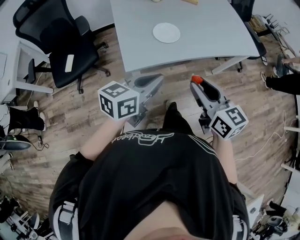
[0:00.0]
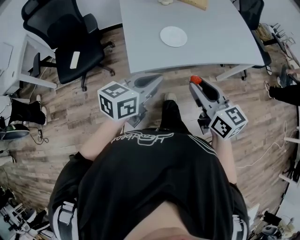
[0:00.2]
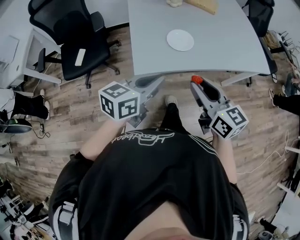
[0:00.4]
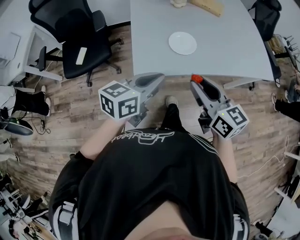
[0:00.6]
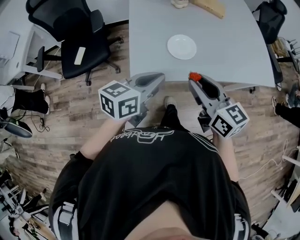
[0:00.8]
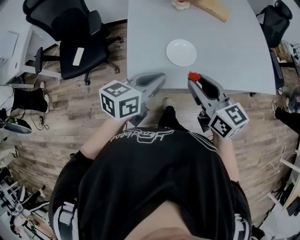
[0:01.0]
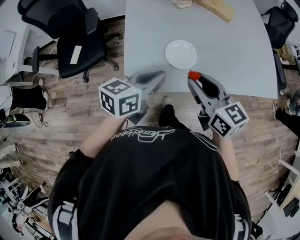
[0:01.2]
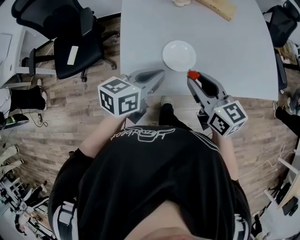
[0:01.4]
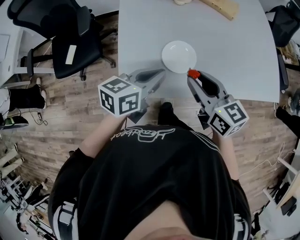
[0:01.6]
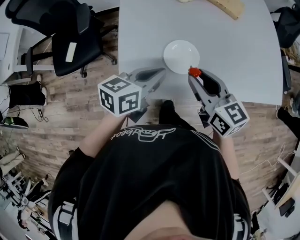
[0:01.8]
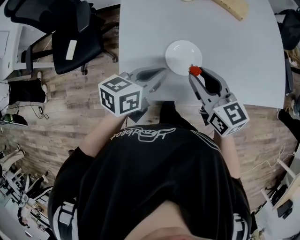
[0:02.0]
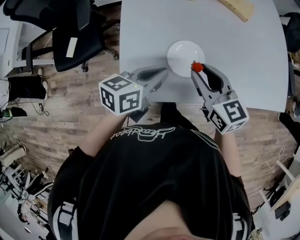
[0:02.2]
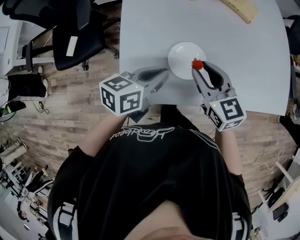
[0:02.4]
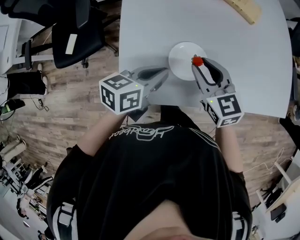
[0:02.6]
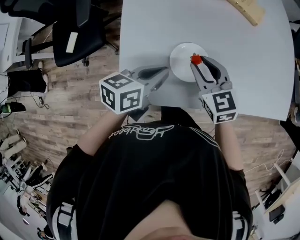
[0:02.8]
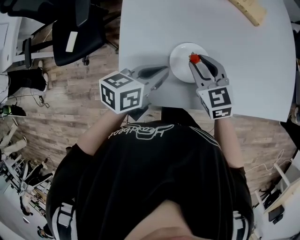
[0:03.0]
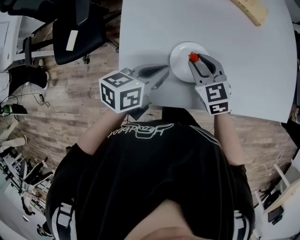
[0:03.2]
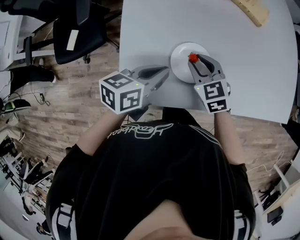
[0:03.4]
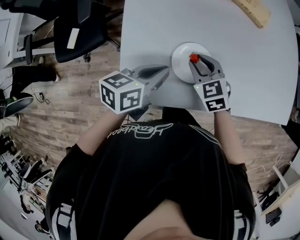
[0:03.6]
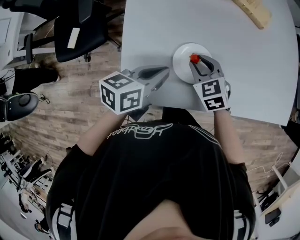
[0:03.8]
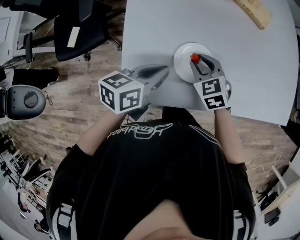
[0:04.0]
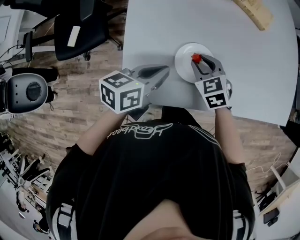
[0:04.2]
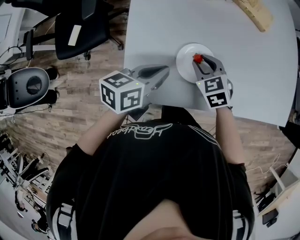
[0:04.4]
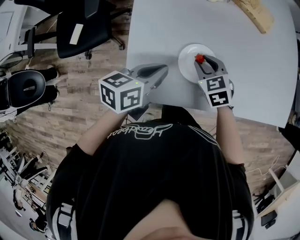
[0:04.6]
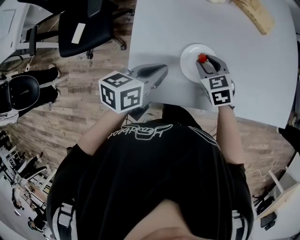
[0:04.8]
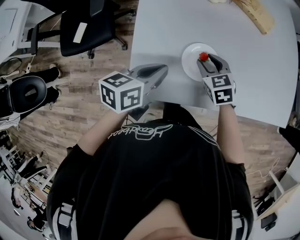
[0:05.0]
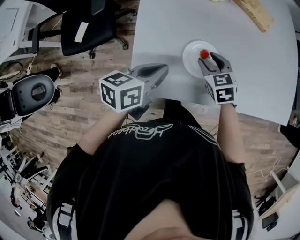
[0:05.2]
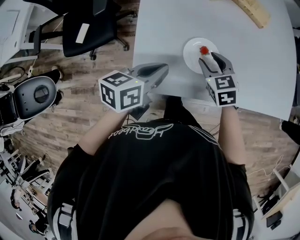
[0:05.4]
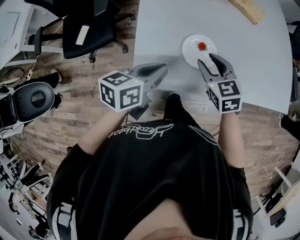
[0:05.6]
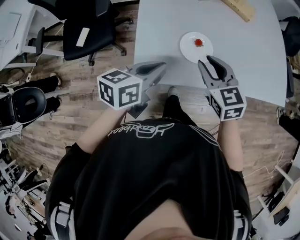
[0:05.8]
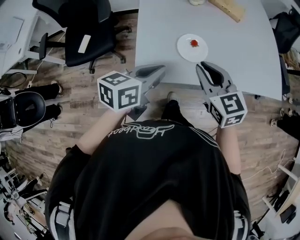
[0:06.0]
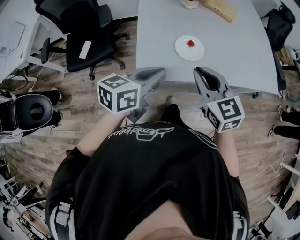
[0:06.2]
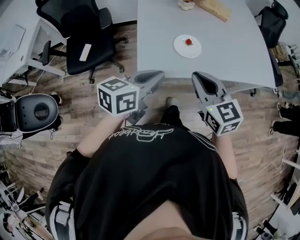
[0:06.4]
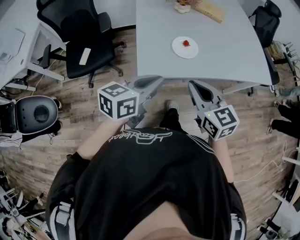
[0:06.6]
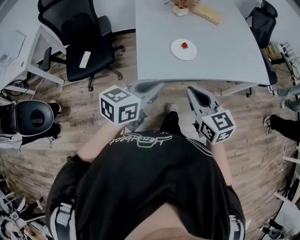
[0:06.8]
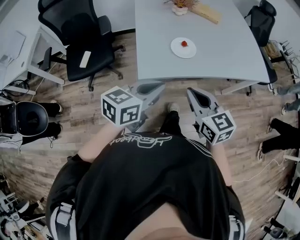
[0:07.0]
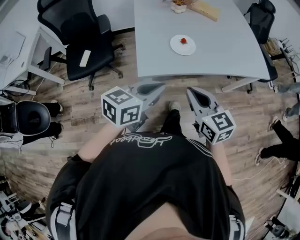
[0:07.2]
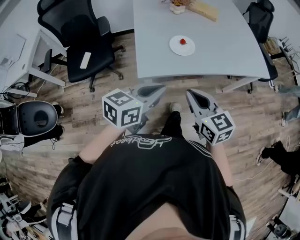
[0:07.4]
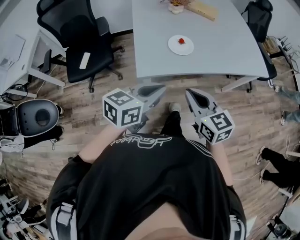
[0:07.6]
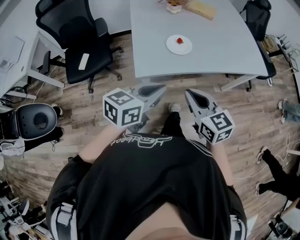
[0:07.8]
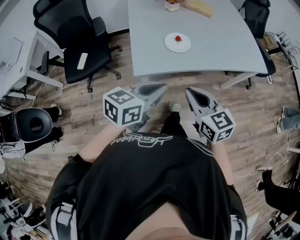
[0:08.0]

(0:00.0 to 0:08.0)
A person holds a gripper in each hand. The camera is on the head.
0:00.0 - 0:01.6: Both grippers move forward, approximately 25 cm.
0:01.6 - 0:03.2: The left gripper goes about 10 cm downward and forward. Meanwhile the right gripper travels downward and forward by approximately 20 cm, and swivels roughly 30 degrees.
0:03.2 - 0:04.8: The grippers stay close to where they were, moving slightly.
0:04.8 - 0:06.4: The grippers both shift backward and upward by about 30 cm. The right gripper tilts its fingers approximately 30 degrees upward, and closes up.
0:06.4 - 0:08.0: Both grippers move backward, about 10 cm.

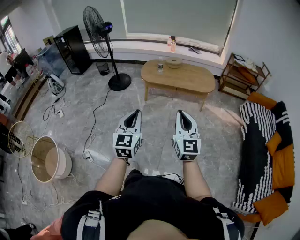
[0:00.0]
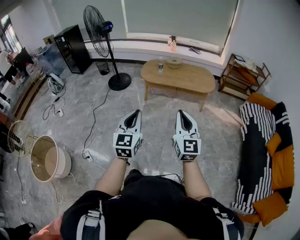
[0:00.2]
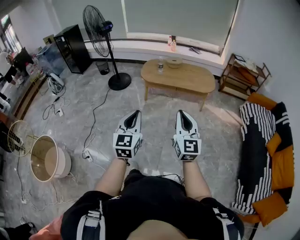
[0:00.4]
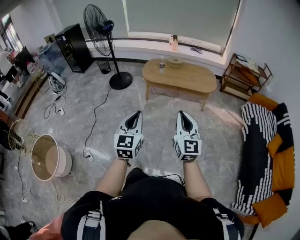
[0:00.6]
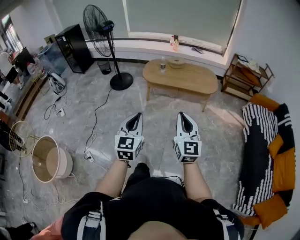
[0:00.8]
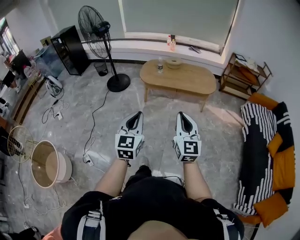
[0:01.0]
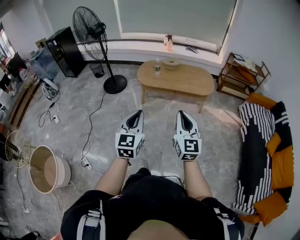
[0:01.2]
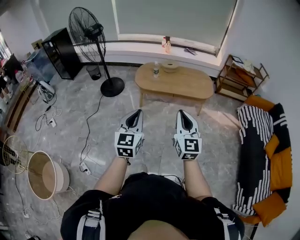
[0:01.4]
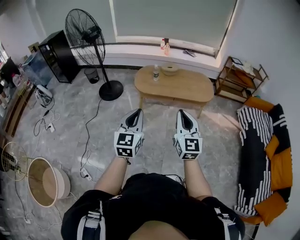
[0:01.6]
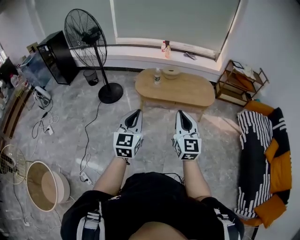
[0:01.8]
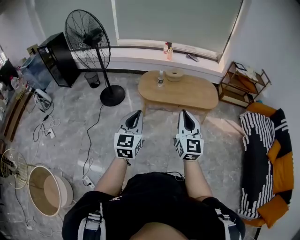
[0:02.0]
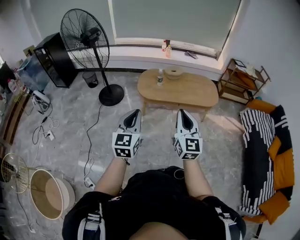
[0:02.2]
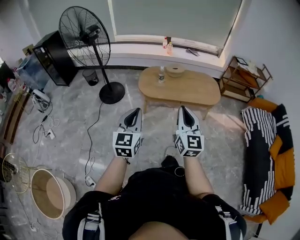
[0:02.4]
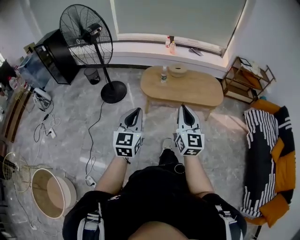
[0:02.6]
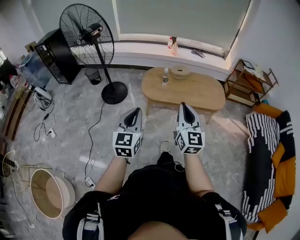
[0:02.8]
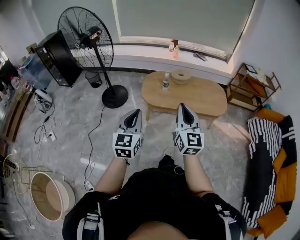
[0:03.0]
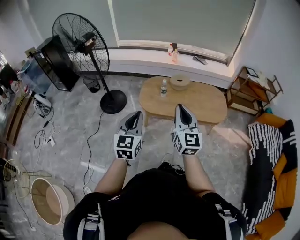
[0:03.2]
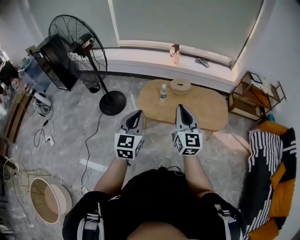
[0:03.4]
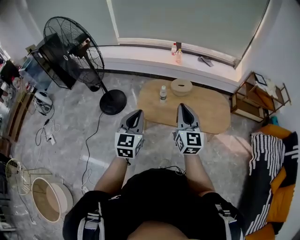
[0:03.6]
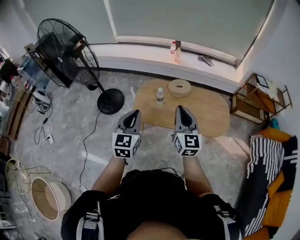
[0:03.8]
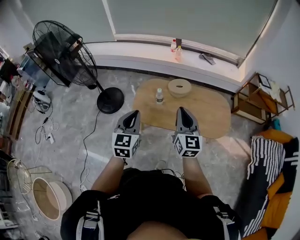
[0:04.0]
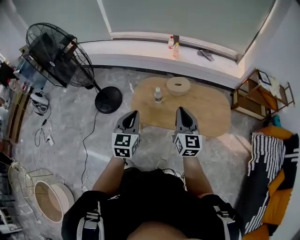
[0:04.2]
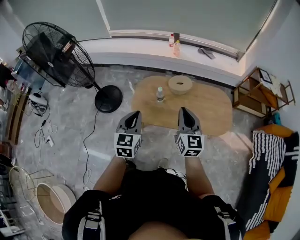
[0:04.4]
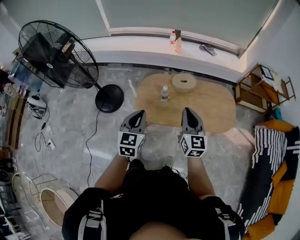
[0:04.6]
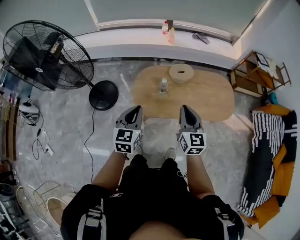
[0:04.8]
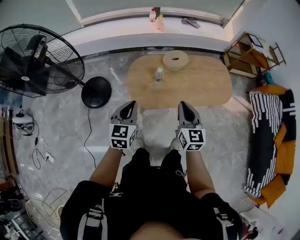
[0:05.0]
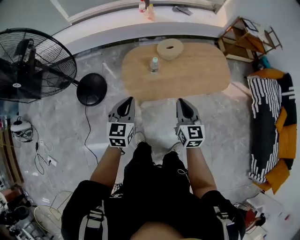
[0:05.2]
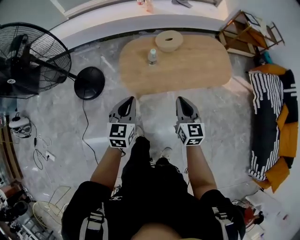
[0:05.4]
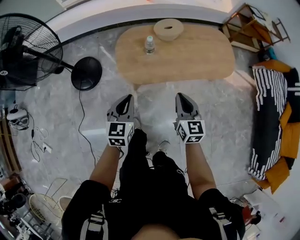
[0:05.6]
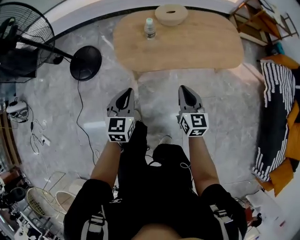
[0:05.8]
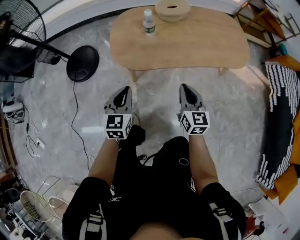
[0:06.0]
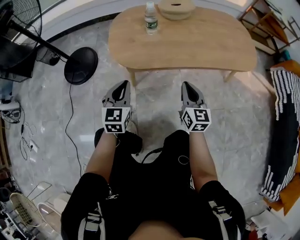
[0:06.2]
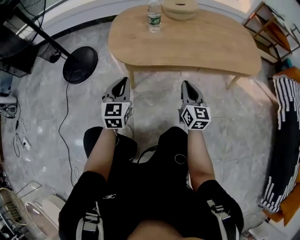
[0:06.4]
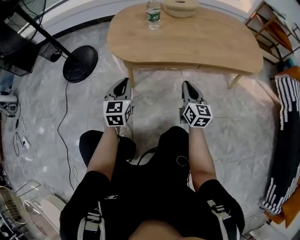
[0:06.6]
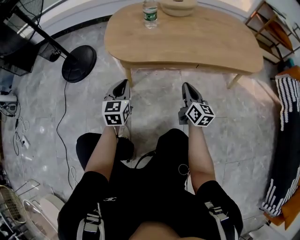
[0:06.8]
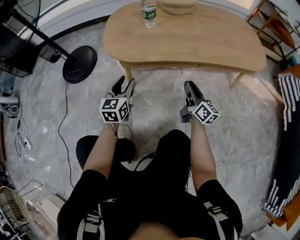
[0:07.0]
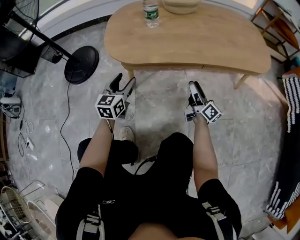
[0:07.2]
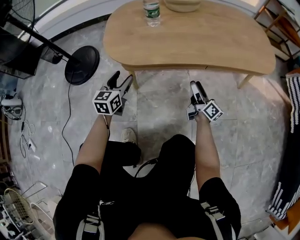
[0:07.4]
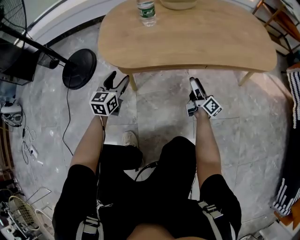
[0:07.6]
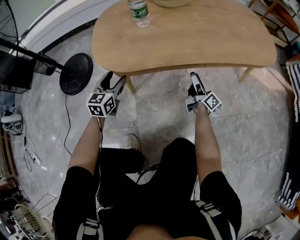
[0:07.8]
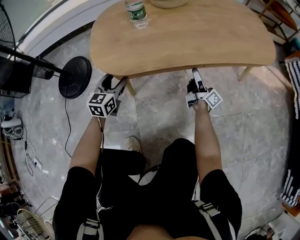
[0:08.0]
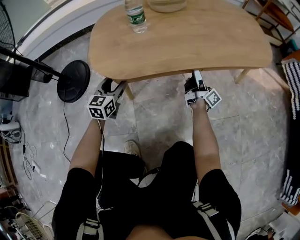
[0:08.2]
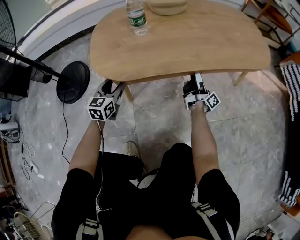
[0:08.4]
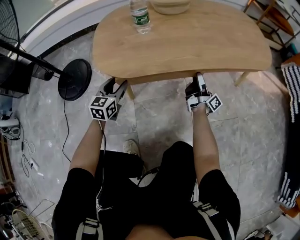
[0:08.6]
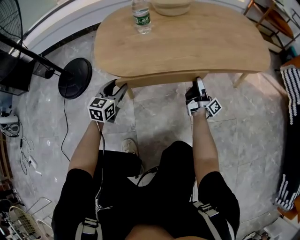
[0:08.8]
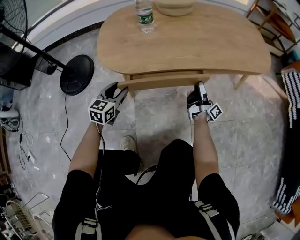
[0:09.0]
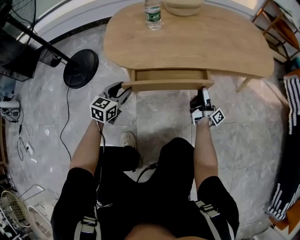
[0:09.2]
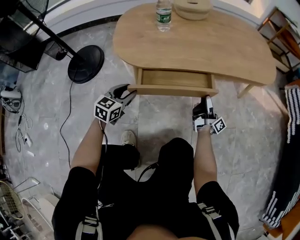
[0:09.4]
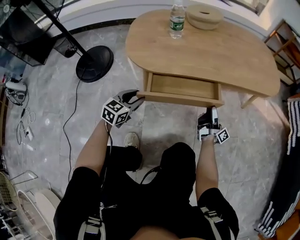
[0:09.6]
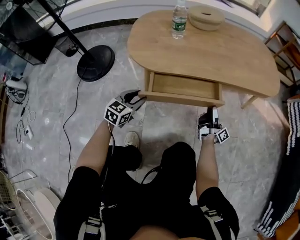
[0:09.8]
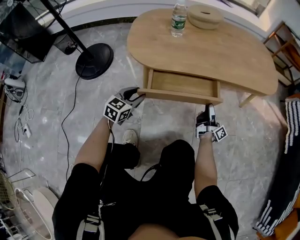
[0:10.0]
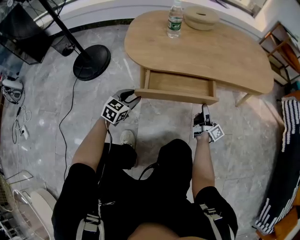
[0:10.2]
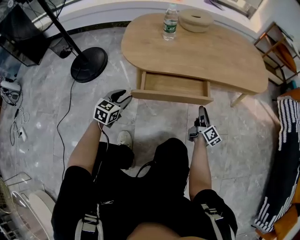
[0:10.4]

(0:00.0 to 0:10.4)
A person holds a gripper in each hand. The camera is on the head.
0:00.0 - 0:01.4: Both grippers travel together forward, roughly 20 cm.
0:01.4 - 0:03.0: The grippers both shift forward and to the left by some 35 cm.
0:03.0 - 0:04.4: Both grippers are carried forward, about 40 cm.
0:04.4 - 0:06.0: Both grippers move downward, approximately 50 cm.
0:06.0 - 0:07.4: The two grippers go about 30 cm downward. The left gripper opens up; the right gripper rotates around the line of its fingers by roughly 50 degrees, clockwise from behind, and opens its fingers.
0:07.4 - 0:09.0: The right gripper reaches approximately 10 cm forward, then returns, and swivels some 30 degrees.
0:09.0 - 0:10.4: Both grippers travel together backward, some 10 cm. The right gripper rotates approximately 40 degrees.

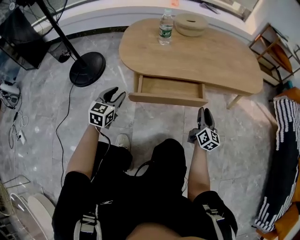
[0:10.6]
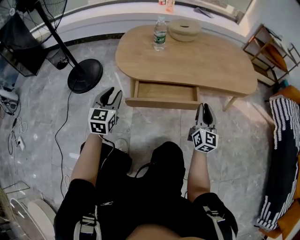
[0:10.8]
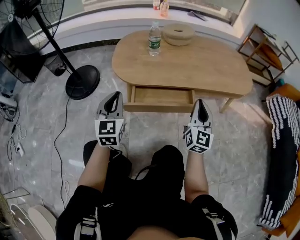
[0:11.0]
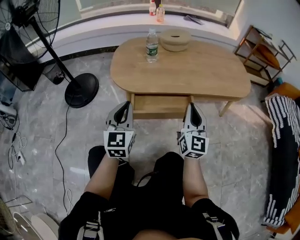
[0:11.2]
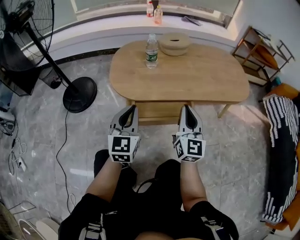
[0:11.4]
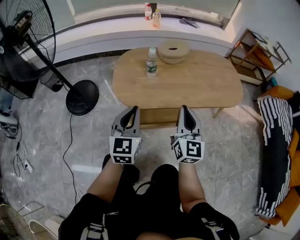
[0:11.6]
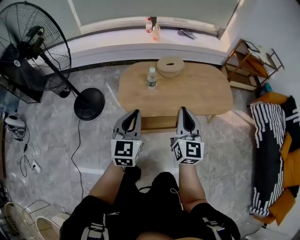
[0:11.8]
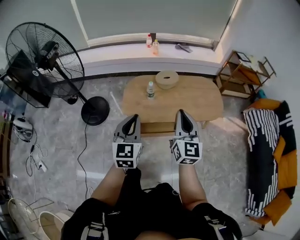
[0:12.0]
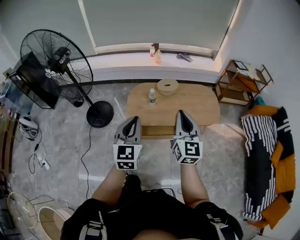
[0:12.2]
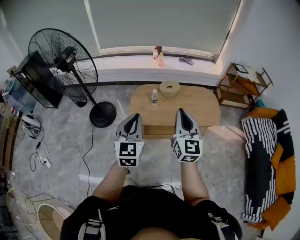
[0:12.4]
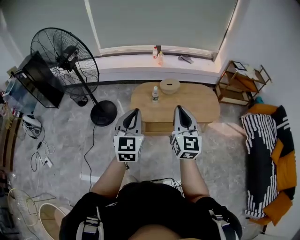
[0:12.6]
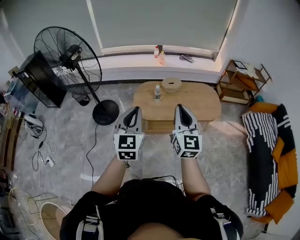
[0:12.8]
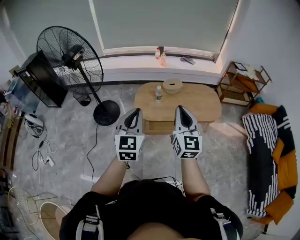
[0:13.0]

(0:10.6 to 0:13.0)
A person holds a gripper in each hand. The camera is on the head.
0:10.6 - 0:11.8: The two grippers go roughly 50 cm upward. The right gripper changes its angle by approximately 20 degrees; the left gripper closes.
0:11.8 - 0:13.0: Both grippers travel together upward and backward, roughly 40 cm.

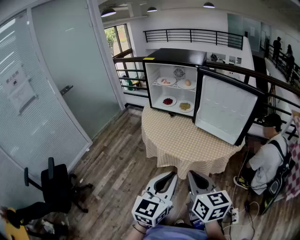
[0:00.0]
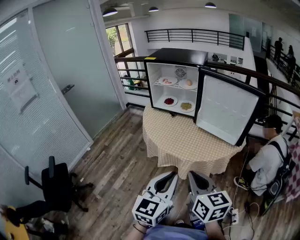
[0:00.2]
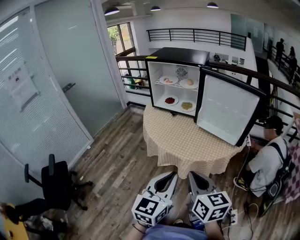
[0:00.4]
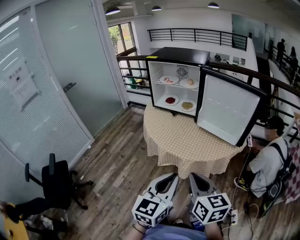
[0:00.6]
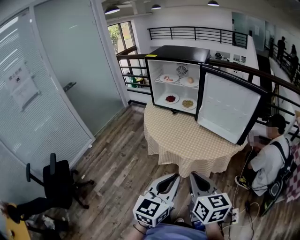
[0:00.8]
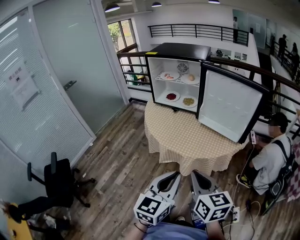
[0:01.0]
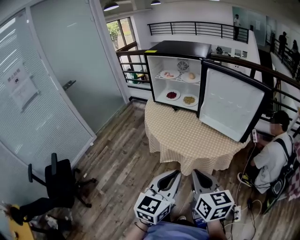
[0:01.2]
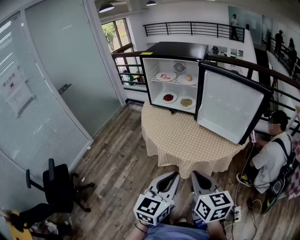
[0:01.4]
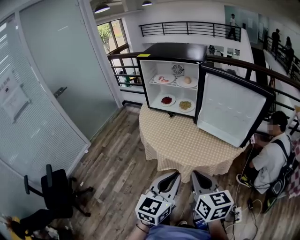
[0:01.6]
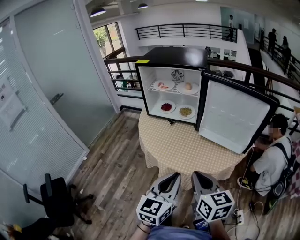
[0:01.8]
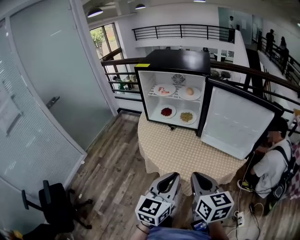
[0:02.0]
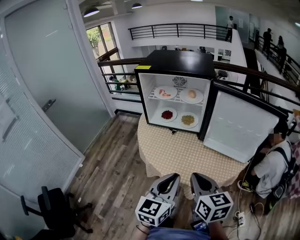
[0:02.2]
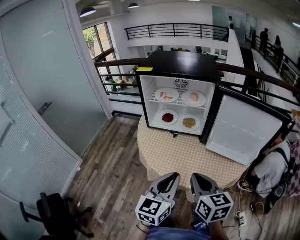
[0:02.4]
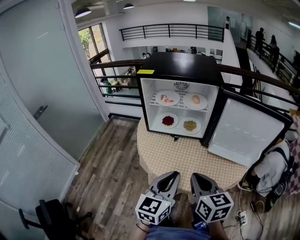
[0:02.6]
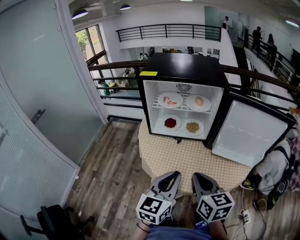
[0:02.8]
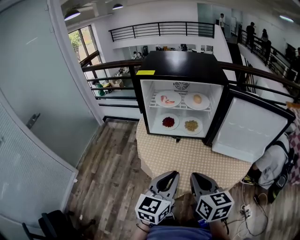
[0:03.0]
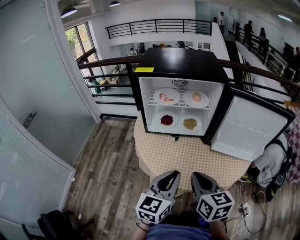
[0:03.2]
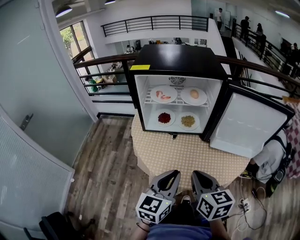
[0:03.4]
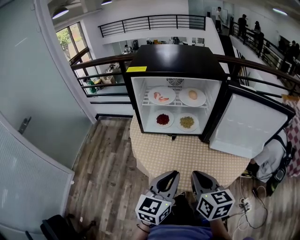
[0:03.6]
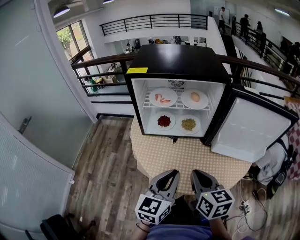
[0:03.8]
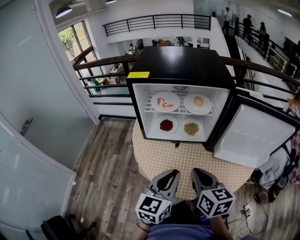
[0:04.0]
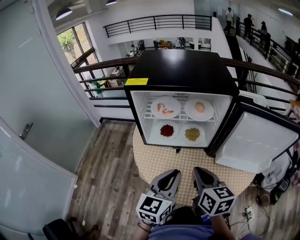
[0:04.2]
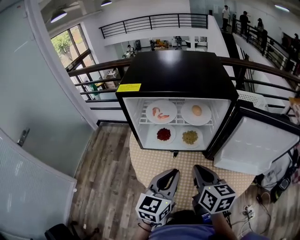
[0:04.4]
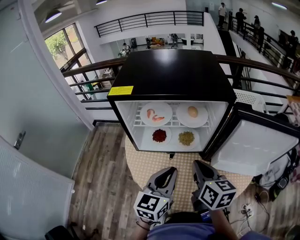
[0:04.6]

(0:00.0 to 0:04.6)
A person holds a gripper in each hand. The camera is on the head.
0:00.0 - 0:01.6: The grippers both shift forward by some 5 cm.
0:01.6 - 0:03.0: The grippers both shift forward and to the left by roughly 25 cm.
0:03.0 - 0:04.6: The grippers both shift forward by about 20 cm.
